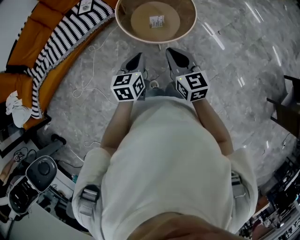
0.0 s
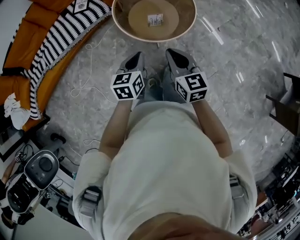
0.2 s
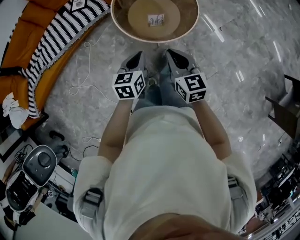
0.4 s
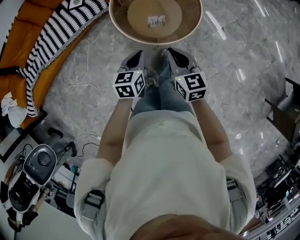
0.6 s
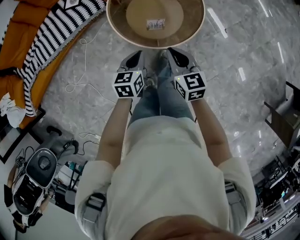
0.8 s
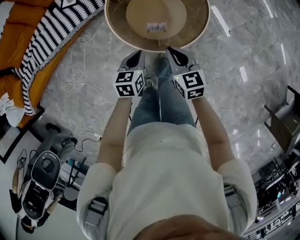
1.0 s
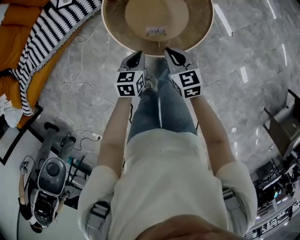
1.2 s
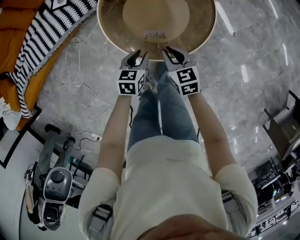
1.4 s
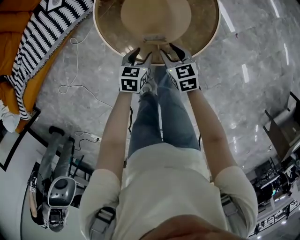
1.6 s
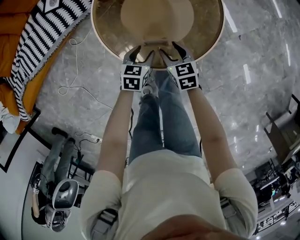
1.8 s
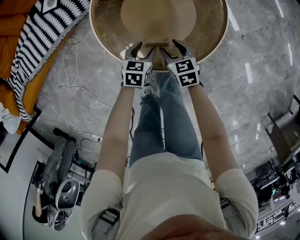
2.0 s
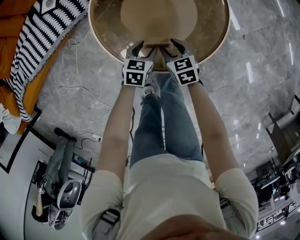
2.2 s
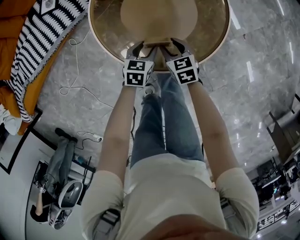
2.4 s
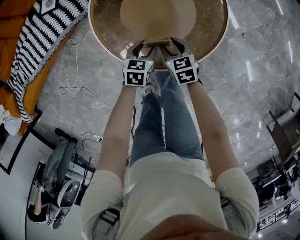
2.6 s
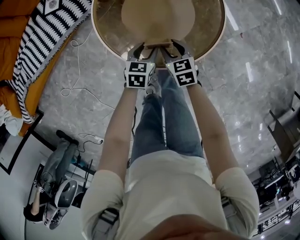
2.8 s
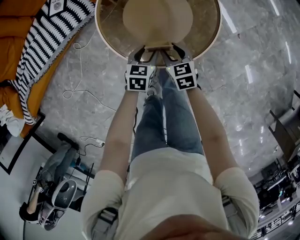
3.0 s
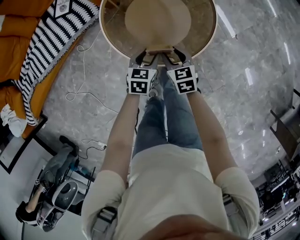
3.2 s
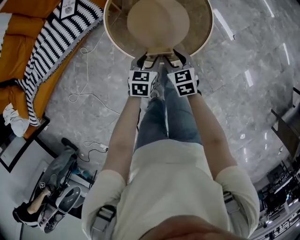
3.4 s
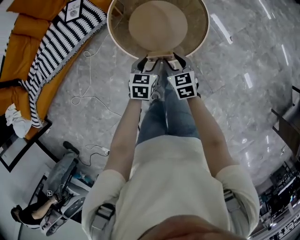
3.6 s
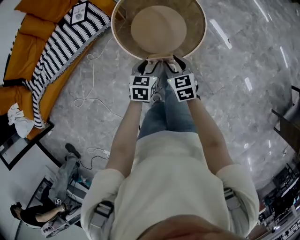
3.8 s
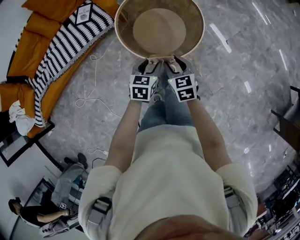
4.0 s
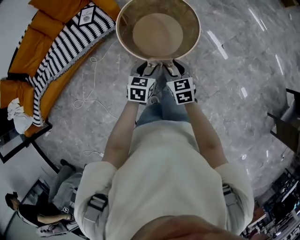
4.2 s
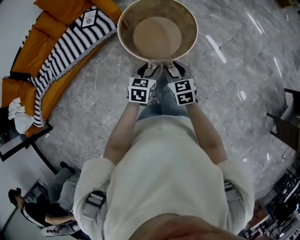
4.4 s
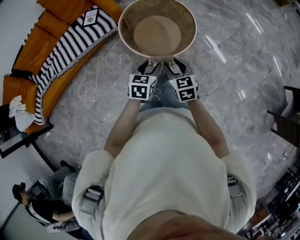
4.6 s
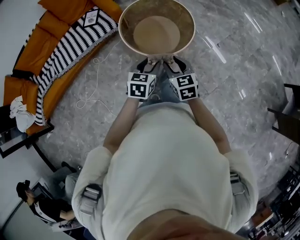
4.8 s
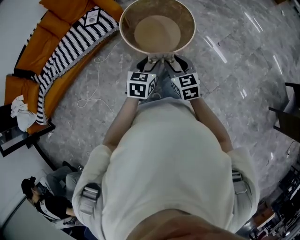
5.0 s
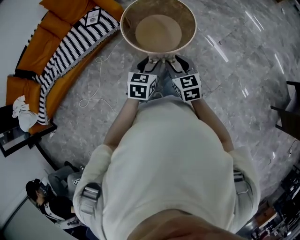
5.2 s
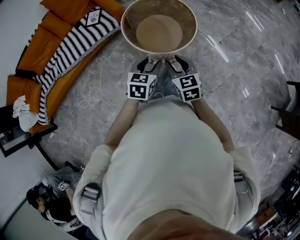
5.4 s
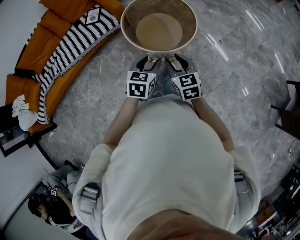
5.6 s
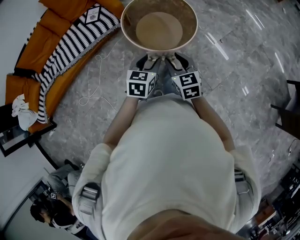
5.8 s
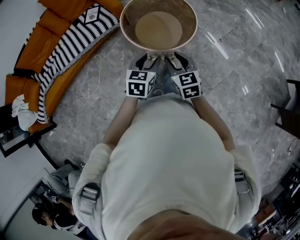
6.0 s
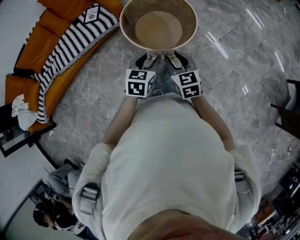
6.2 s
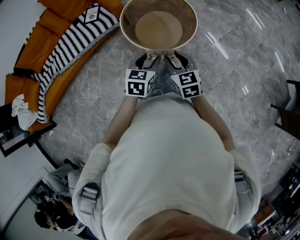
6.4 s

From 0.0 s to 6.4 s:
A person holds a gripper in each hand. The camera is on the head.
From 0.0 s to 1.6 s: Both grippers travel together downward and forward, some 40 cm. The right gripper turns by roughly 30 degrees, and opens its fingers, while the left gripper turns by approximately 20 degrees, and opens up.
From 1.6 s to 3.2 s: The right gripper reaches approximately 10 cm downward, then returns.
From 3.2 s to 4.8 s: Both grippers move upward and backward, about 30 cm.
From 4.8 s to 6.4 s: There are only small adjustments of the grippers.

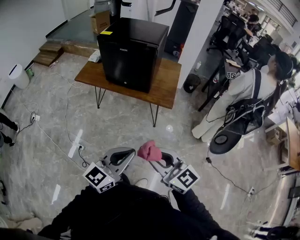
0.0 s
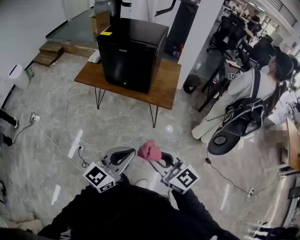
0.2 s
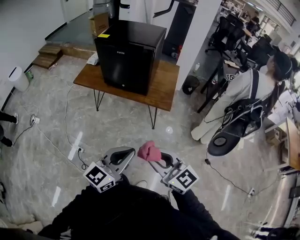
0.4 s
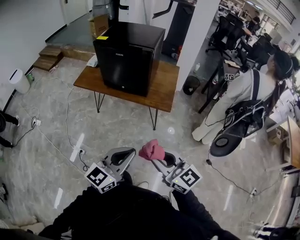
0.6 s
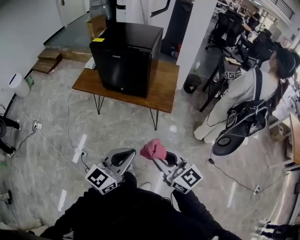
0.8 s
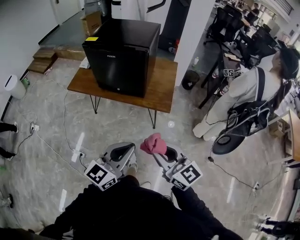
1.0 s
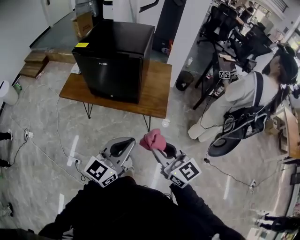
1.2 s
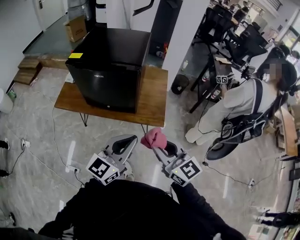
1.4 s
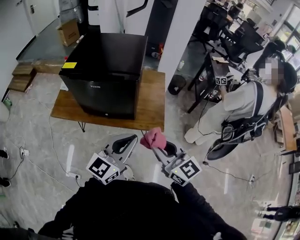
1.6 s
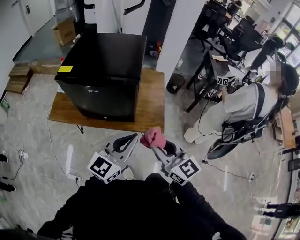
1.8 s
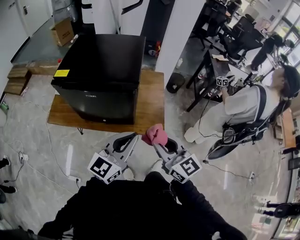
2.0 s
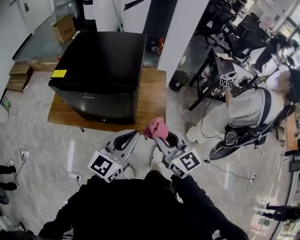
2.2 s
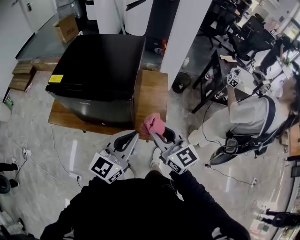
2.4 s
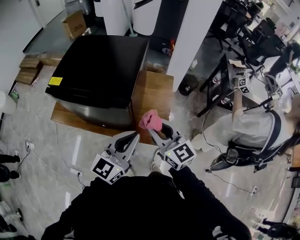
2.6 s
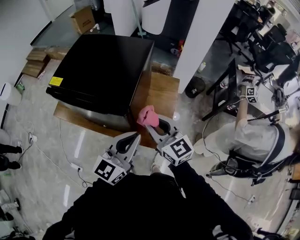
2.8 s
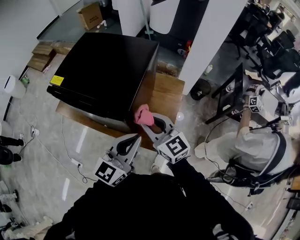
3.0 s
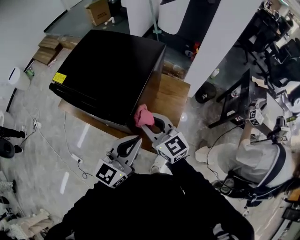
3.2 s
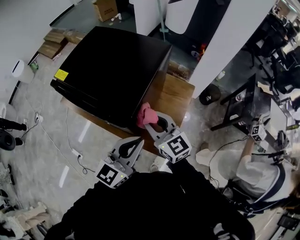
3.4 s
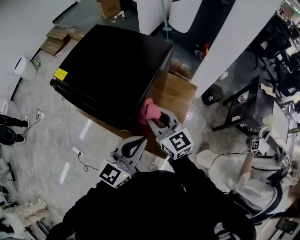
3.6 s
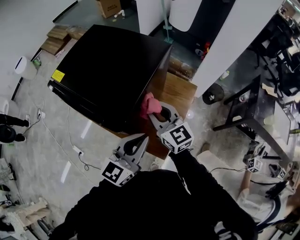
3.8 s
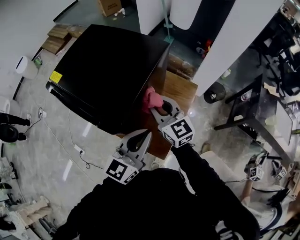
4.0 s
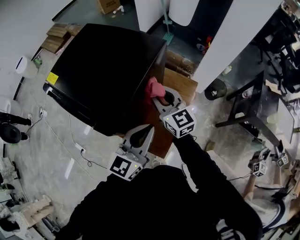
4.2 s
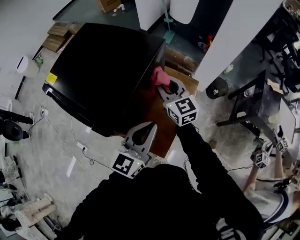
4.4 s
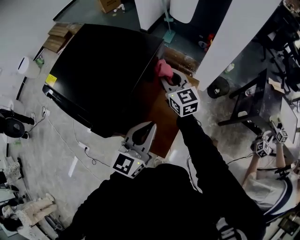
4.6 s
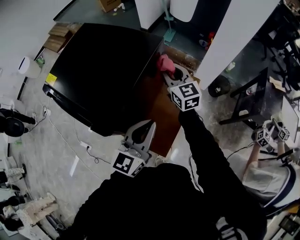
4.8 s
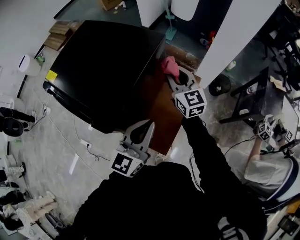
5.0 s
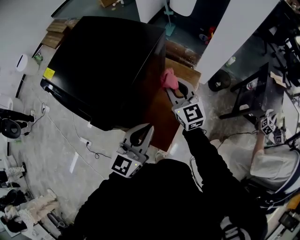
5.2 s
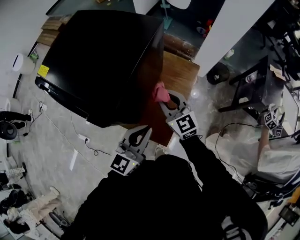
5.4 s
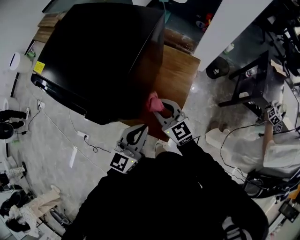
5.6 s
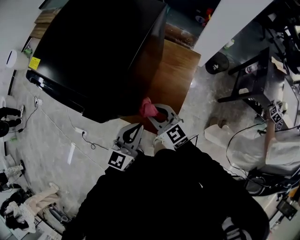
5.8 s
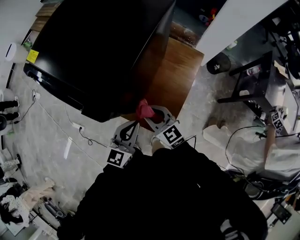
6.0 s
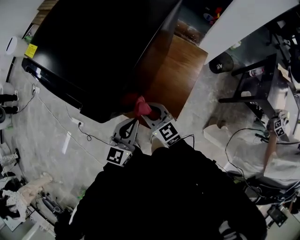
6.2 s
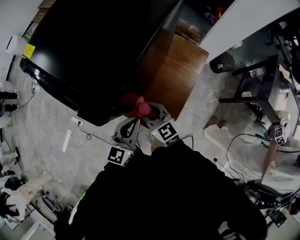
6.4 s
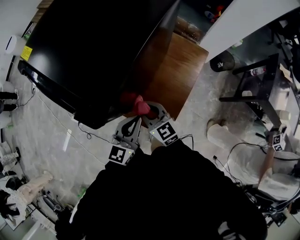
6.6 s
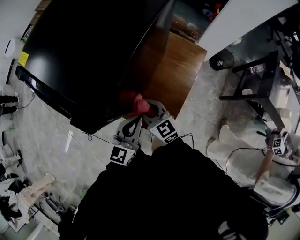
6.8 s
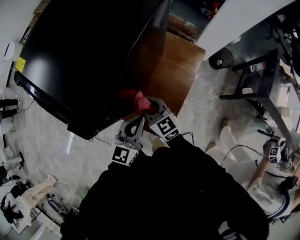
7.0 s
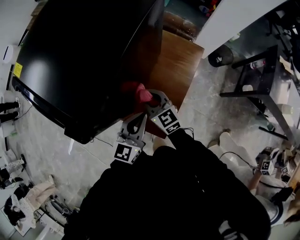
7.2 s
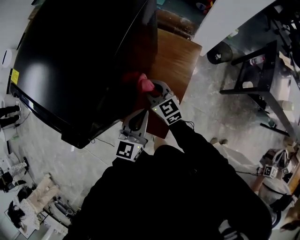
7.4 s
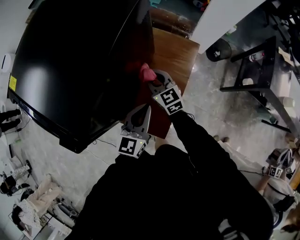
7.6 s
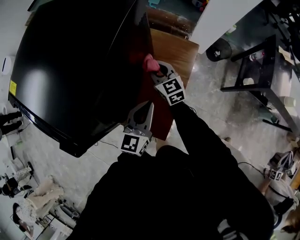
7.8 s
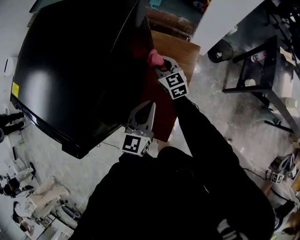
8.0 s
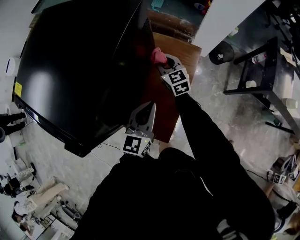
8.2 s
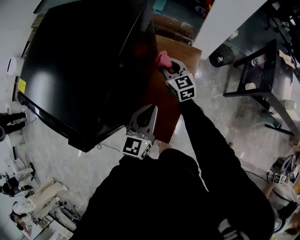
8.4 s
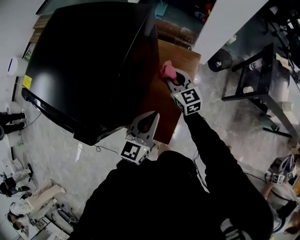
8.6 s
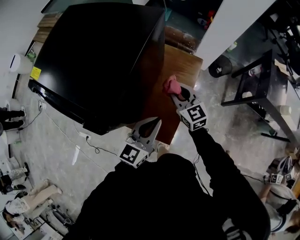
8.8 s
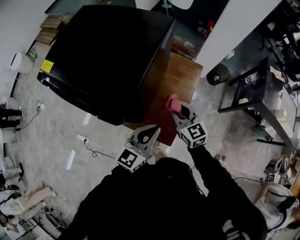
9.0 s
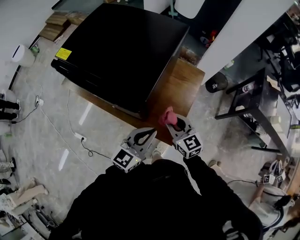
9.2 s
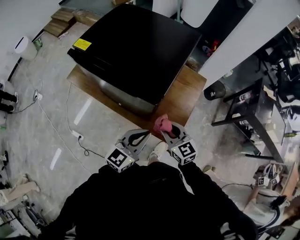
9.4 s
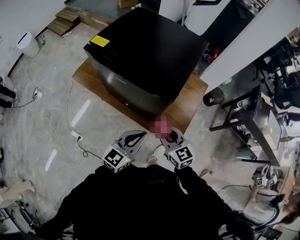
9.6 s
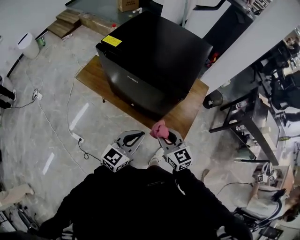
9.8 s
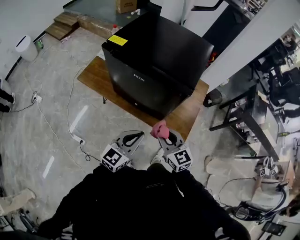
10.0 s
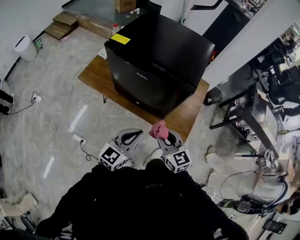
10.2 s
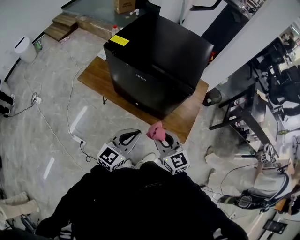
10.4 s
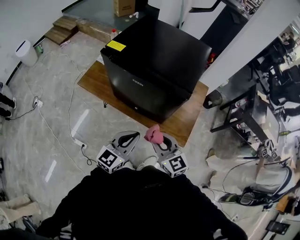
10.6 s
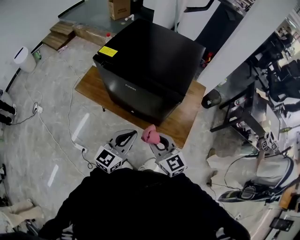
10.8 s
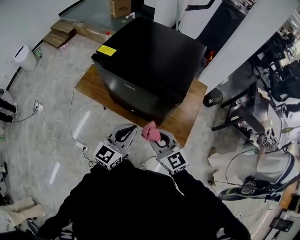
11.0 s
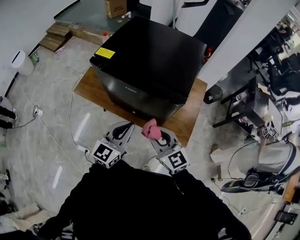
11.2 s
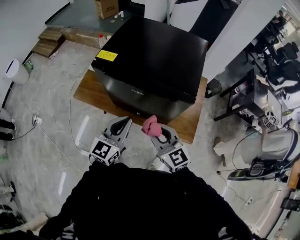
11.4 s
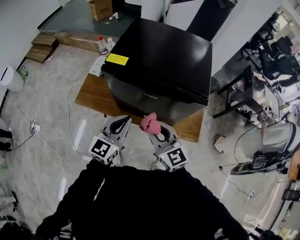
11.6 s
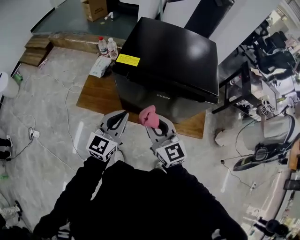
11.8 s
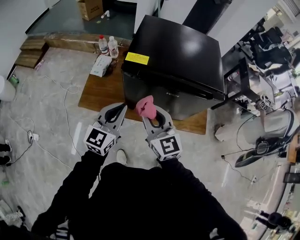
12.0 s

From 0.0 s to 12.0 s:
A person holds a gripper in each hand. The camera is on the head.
From 0.0 s to 1.6 s: The two grippers go some 35 cm forward.
From 1.6 s to 3.0 s: Both grippers travel together forward, about 30 cm.
From 3.0 s to 4.4 s: The left gripper heads forward and to the right, covering about 15 cm, while the right gripper moves forward and to the right, some 25 cm.
From 4.4 s to 6.0 s: The left gripper shifts roughly 20 cm downward and to the left. The right gripper is displaced backward, downward and to the left by about 30 cm.
From 6.0 s to 7.6 s: The right gripper goes about 20 cm forward and to the right. The left gripper shifts about 15 cm to the right and forward.
From 7.6 s to 9.0 s: The two grippers go approximately 15 cm backward and upward.
From 9.0 s to 10.4 s: Both grippers move to the left and backward, roughly 35 cm.
From 10.4 s to 12.0 s: Both grippers move to the left and forward, roughly 30 cm. The right gripper swivels about 20 degrees.

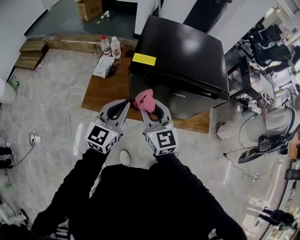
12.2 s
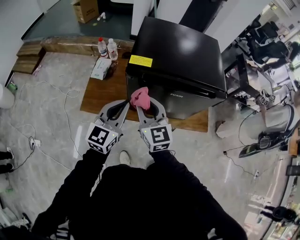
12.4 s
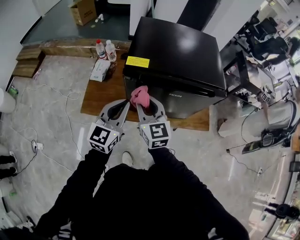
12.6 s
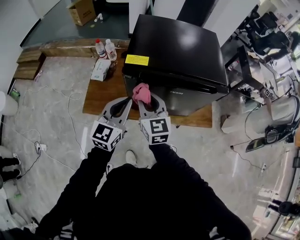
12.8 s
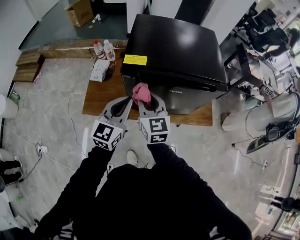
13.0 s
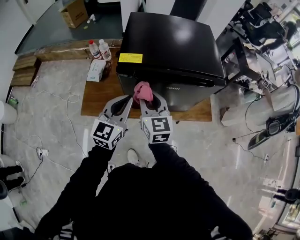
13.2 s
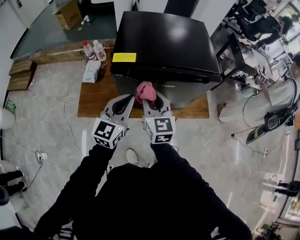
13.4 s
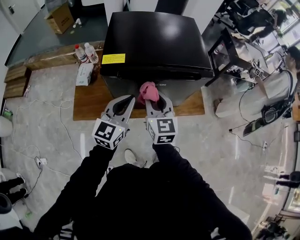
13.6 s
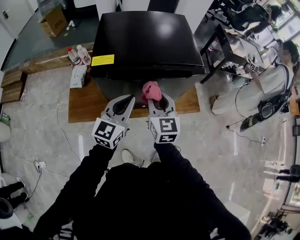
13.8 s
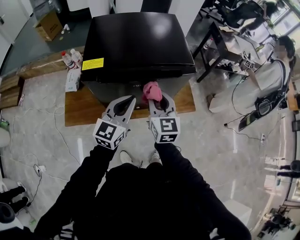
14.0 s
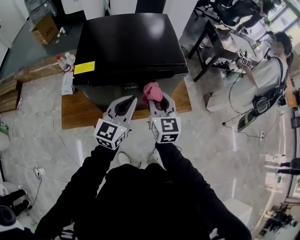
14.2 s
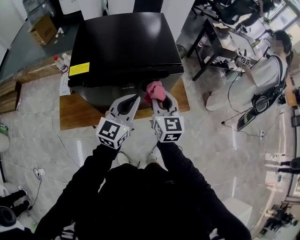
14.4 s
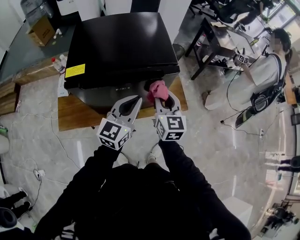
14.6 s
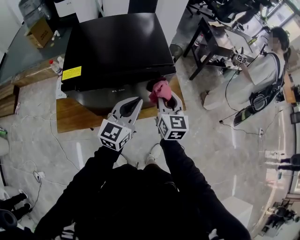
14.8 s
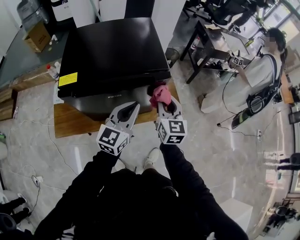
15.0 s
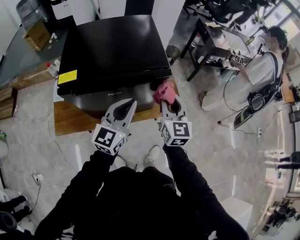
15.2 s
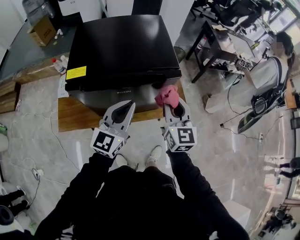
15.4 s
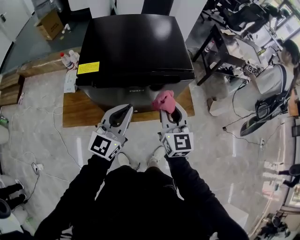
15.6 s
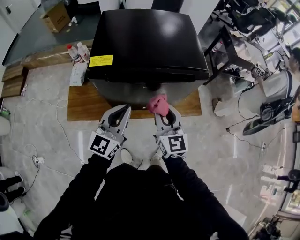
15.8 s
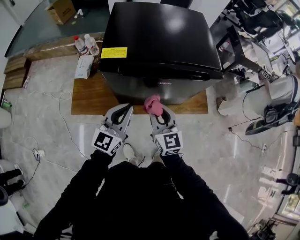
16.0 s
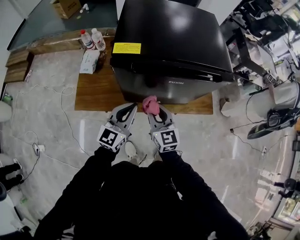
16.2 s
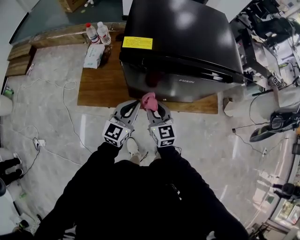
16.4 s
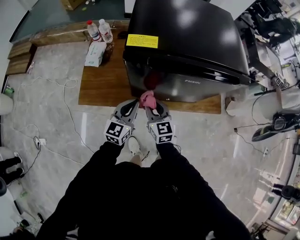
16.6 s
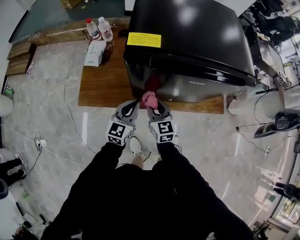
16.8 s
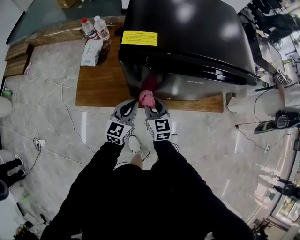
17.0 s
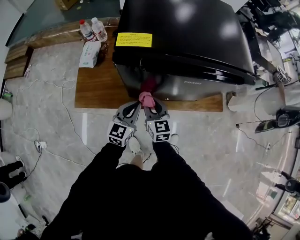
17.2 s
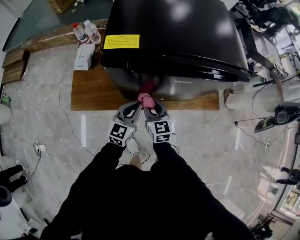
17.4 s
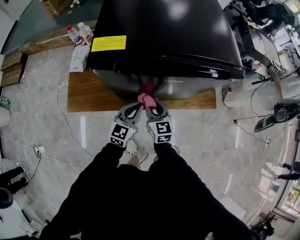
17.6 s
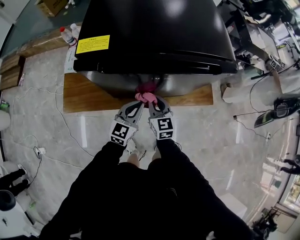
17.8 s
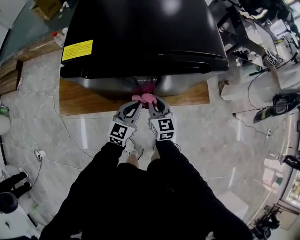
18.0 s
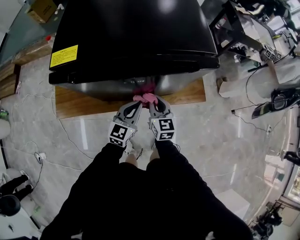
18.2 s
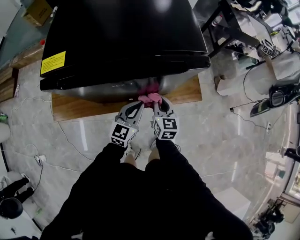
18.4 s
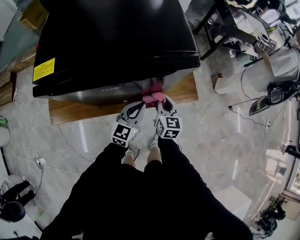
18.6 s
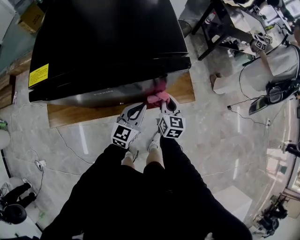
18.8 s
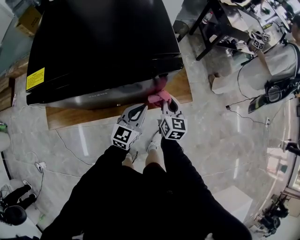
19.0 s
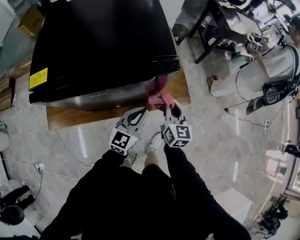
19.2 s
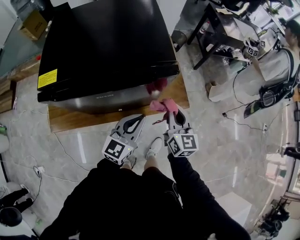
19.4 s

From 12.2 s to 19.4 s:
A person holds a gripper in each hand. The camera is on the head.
From 12.2 s to 13.6 s: Both grippers travel together to the right, about 10 cm. The right gripper turns by some 20 degrees.
From 13.6 s to 15.0 s: The grippers both shift to the right by roughly 20 cm.
From 15.0 s to 16.6 s: Both grippers travel together to the left and downward, roughly 35 cm. The right gripper rotates roughly 30 degrees.
From 16.6 s to 18.0 s: The grippers both shift to the right by approximately 15 cm.
From 18.0 s to 19.4 s: The two grippers go about 20 cm to the right and upward.
